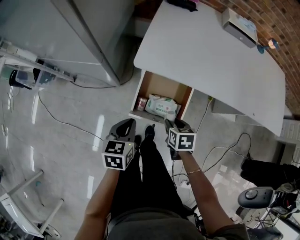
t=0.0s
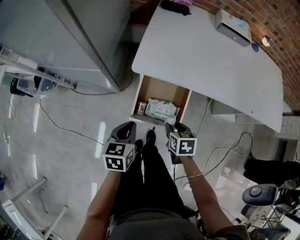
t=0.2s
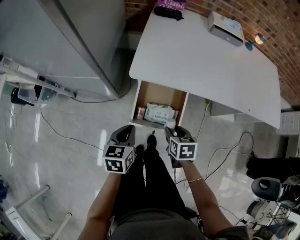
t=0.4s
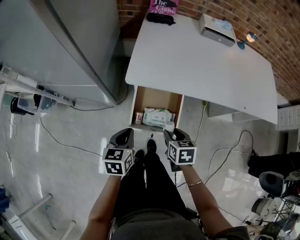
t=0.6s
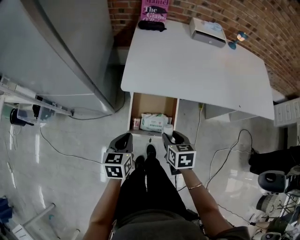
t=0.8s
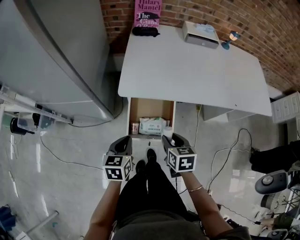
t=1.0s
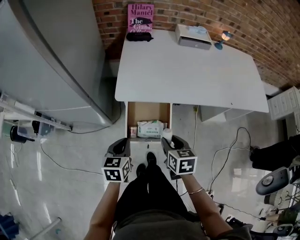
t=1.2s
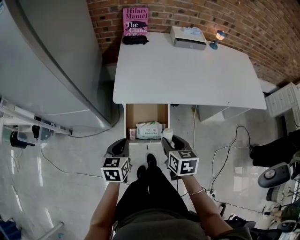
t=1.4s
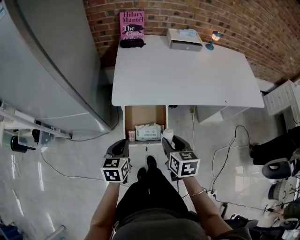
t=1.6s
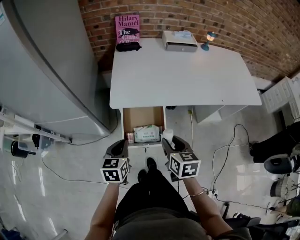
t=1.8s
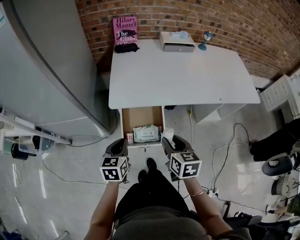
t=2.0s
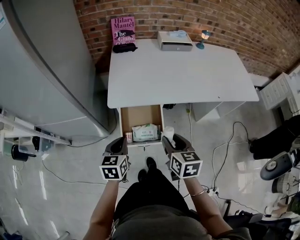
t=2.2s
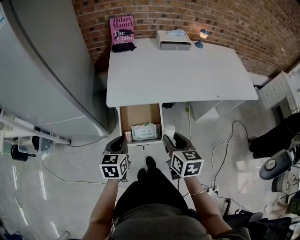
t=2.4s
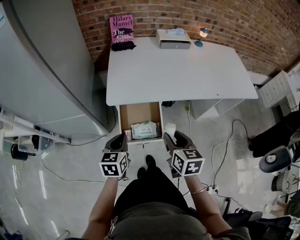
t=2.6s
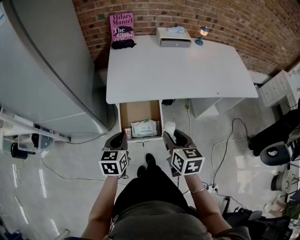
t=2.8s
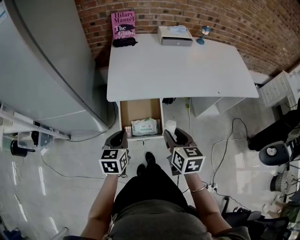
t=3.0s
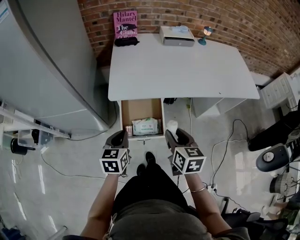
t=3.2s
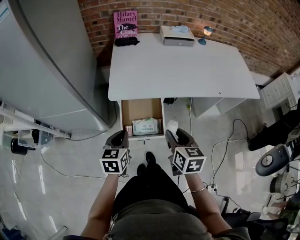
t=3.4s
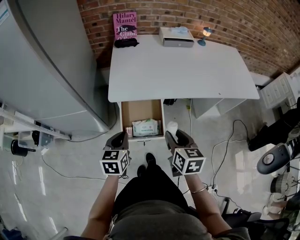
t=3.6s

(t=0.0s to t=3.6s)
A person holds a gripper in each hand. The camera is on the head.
t=0.0s - t=1.8s: The right gripper goes approximately 20 cm upward, and turns by some 30 degrees, while the left gripper is displaced upward by some 5 cm.
t=1.8s - t=3.6s: The grippers move only a little.

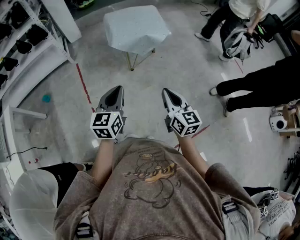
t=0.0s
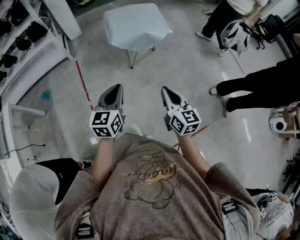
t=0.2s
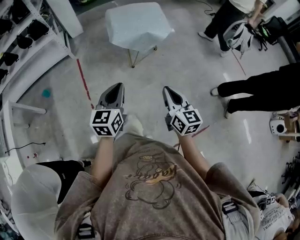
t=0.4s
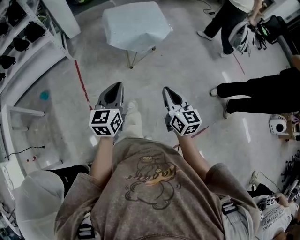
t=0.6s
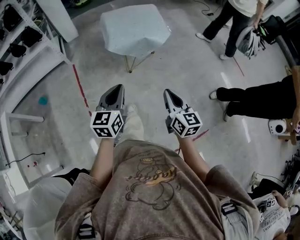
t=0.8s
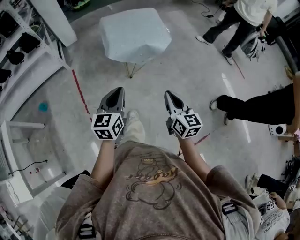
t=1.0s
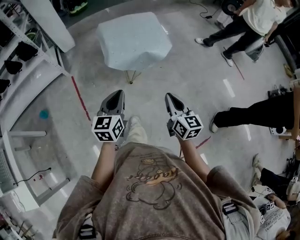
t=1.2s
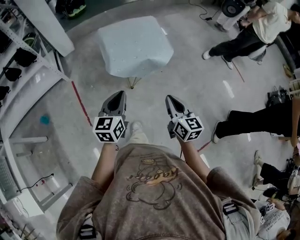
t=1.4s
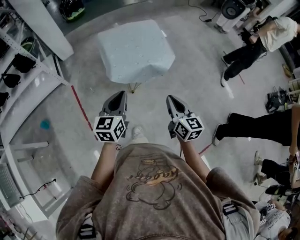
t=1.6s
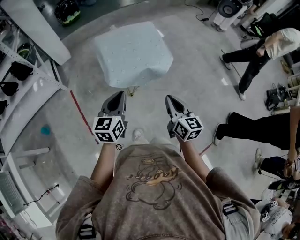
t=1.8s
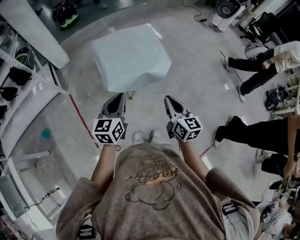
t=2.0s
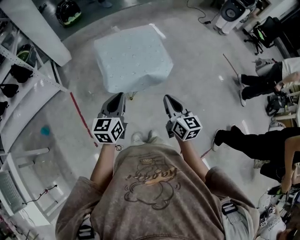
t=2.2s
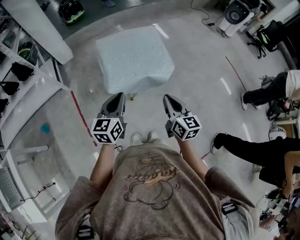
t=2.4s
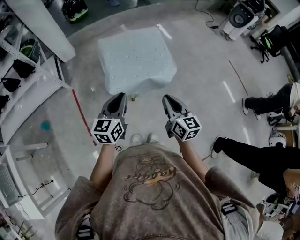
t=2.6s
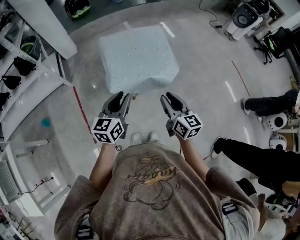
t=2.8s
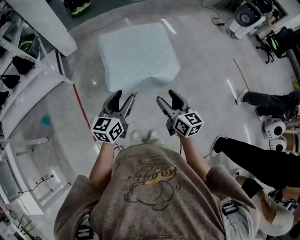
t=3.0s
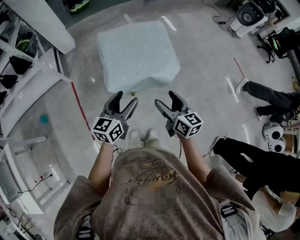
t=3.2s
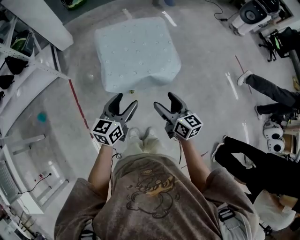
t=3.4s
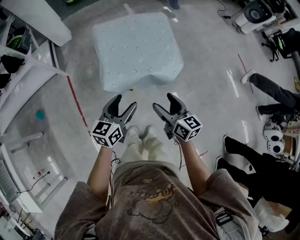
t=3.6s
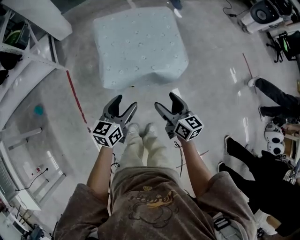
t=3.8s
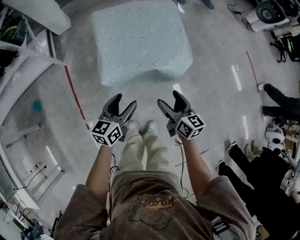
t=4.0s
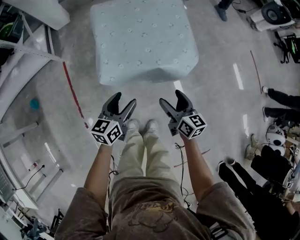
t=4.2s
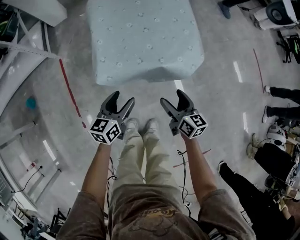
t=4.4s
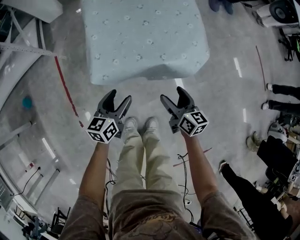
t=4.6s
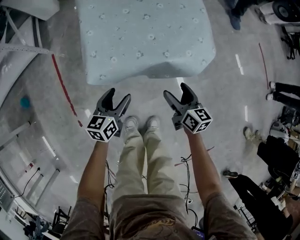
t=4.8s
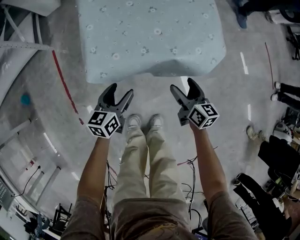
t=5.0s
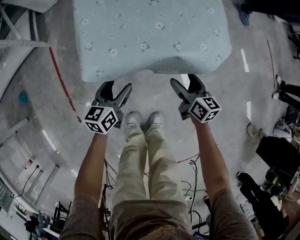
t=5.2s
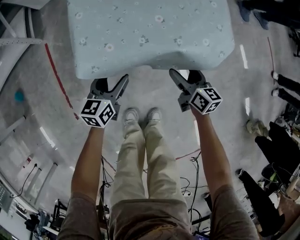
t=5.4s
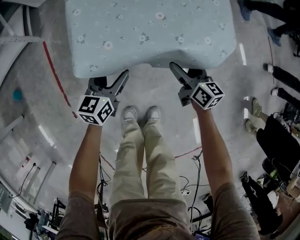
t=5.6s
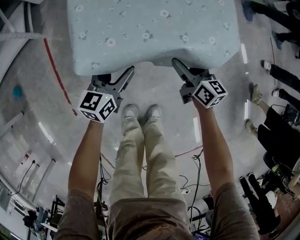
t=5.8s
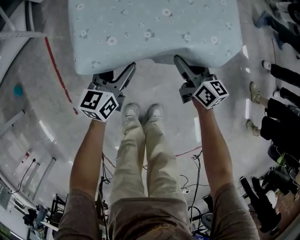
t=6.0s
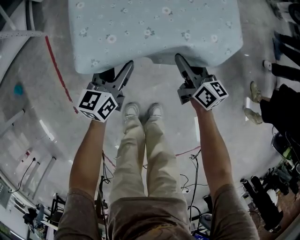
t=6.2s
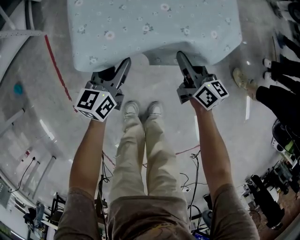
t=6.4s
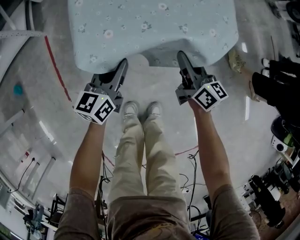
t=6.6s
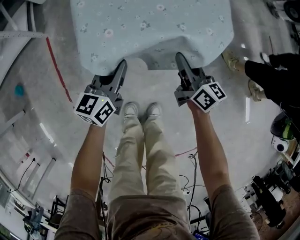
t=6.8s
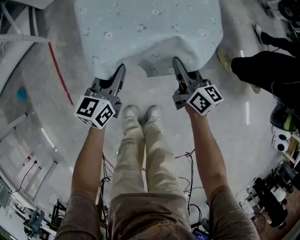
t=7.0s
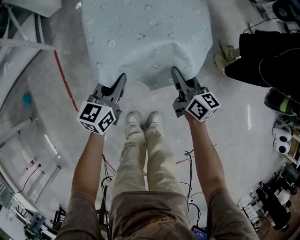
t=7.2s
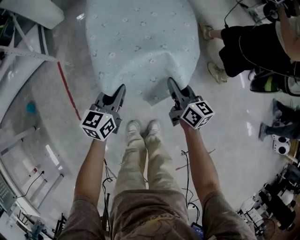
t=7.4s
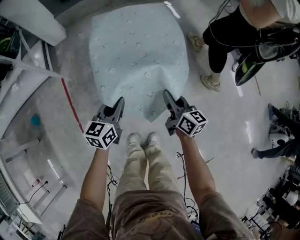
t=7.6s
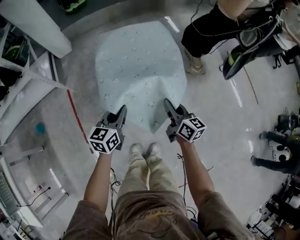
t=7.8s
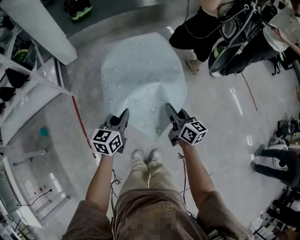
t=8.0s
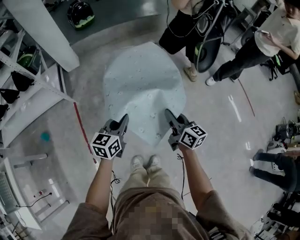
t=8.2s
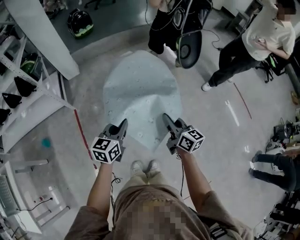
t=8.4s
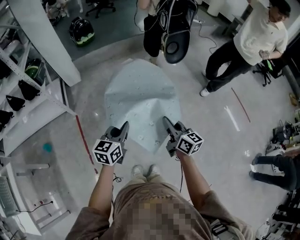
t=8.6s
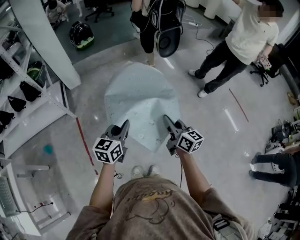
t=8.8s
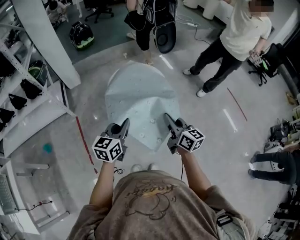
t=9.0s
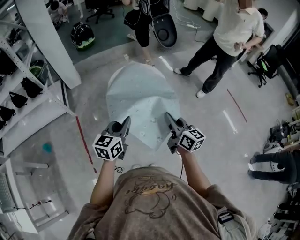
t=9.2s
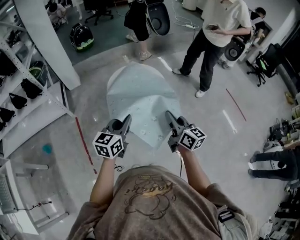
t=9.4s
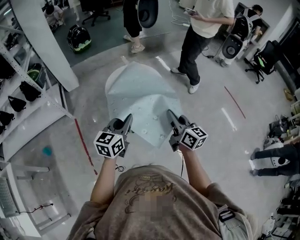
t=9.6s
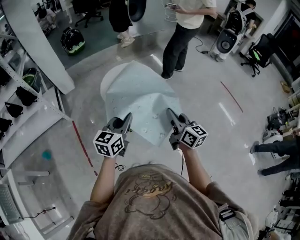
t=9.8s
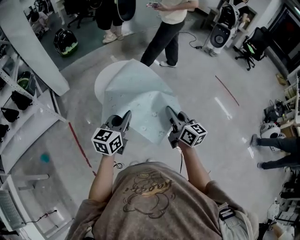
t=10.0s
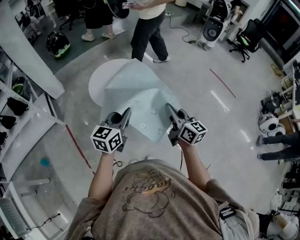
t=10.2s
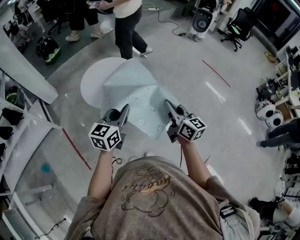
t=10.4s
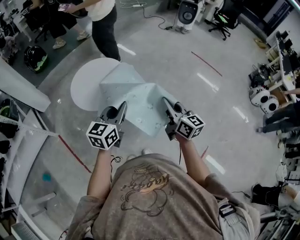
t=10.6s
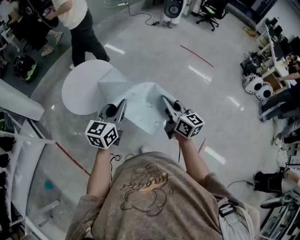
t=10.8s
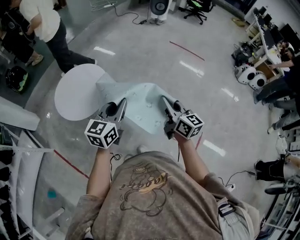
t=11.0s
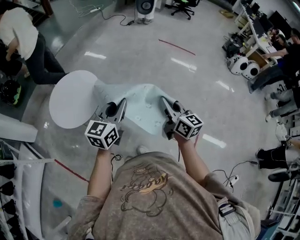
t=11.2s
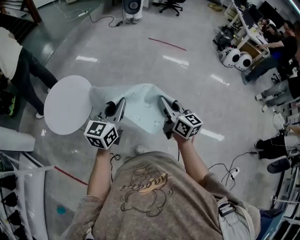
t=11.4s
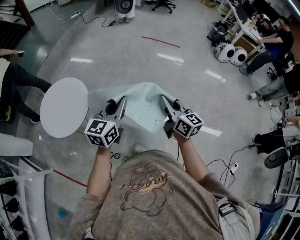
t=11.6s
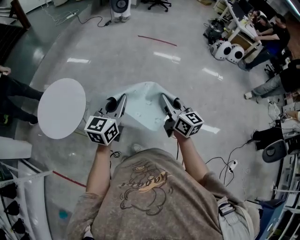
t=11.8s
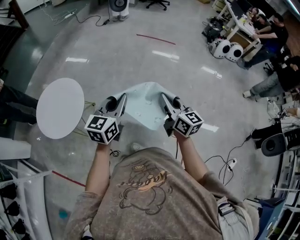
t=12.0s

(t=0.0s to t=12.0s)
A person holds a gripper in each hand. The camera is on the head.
t=0.0s - t=1.6s: The grippers both shift forward by approximately 30 cm.
t=1.6s - t=3.0s: The two grippers go approximately 10 cm forward. The right gripper opens up. Meanwhile the left gripper opens.
t=3.0s - t=4.4s: The two grippers go some 25 cm downward.
t=4.4s - t=6.0s: Both grippers travel together downward and forward, about 15 cm.
t=6.0s - t=7.6s: The two grippers go approximately 15 cm upward. The right gripper closes its fingers, while the left gripper closes up.
t=7.6s - t=9.0s: Both grippers travel together upward, approximately 25 cm.
t=9.0s - t=10.4s: The right gripper moves to the right and backward, approximately 15 cm. The left gripper is displaced to the right by approximately 10 cm.
t=10.4s - t=12.0s: The left gripper ends up some 25 cm from where it was, and rotates approximately 30 degrees; the right gripper shifts by approximately 25 cm, and swivels some 30 degrees.

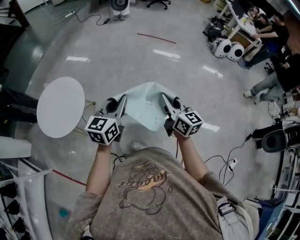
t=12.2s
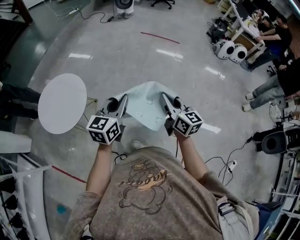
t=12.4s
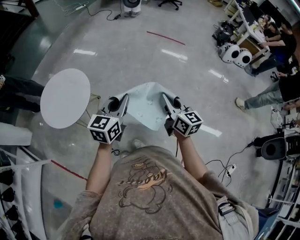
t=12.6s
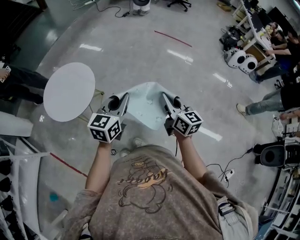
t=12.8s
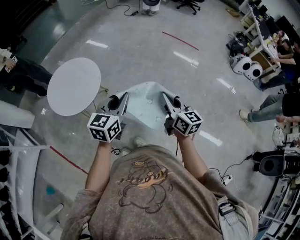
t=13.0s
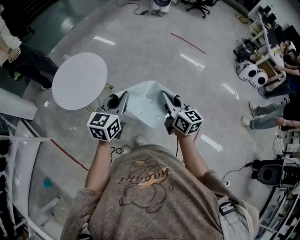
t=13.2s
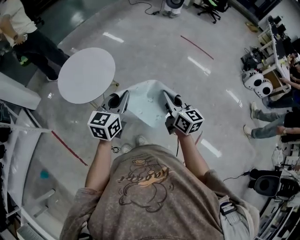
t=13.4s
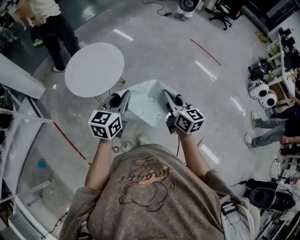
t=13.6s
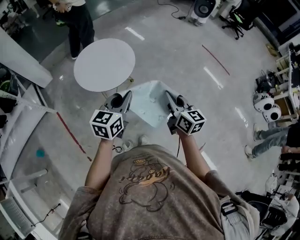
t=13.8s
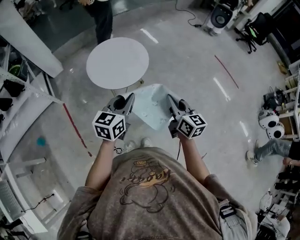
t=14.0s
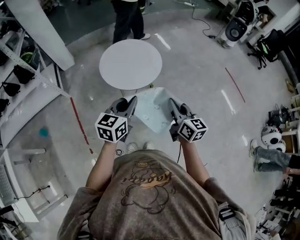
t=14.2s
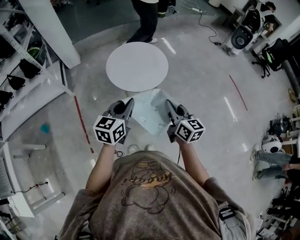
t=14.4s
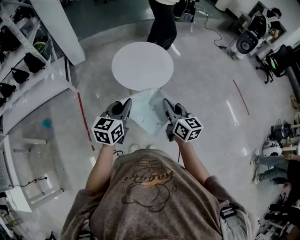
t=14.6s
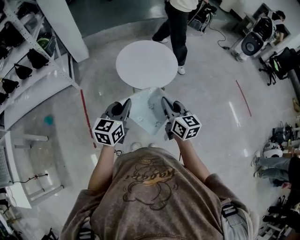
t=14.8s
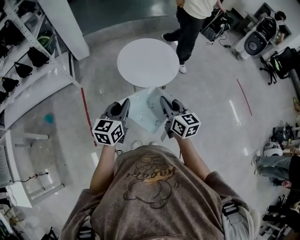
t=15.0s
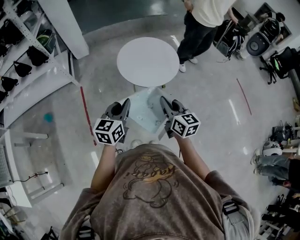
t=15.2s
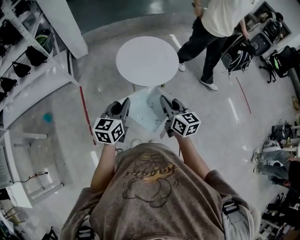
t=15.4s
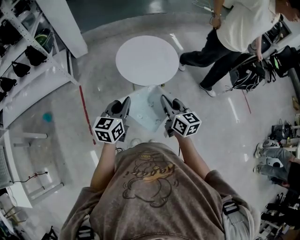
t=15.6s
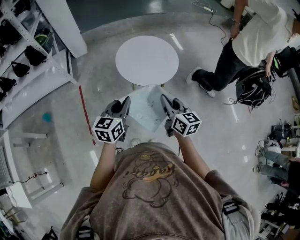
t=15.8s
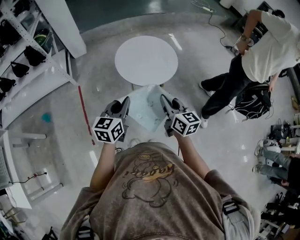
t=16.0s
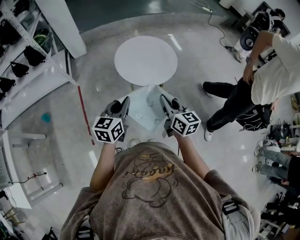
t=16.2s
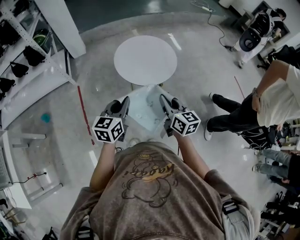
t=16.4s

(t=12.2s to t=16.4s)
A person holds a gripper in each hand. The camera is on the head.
t=12.2s - t=13.6s: The right gripper shifts by some 15 cm, and turns by about 30 degrees. Meanwhile the left gripper changes place by approximately 15 cm, and swivels some 30 degrees.
t=13.6s - t=15.0s: The right gripper shifts by approximately 25 cm, and swivels some 30 degrees. The left gripper shifts by some 25 cm, and swivels roughly 30 degrees.
t=15.0s - t=16.4s: There are only small adjustments of the grippers.

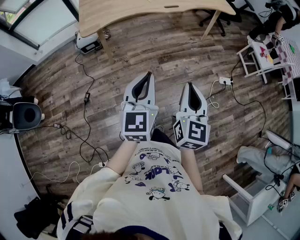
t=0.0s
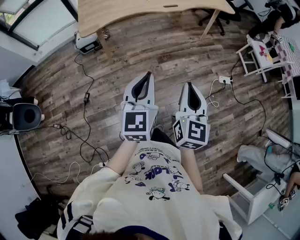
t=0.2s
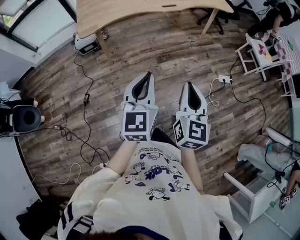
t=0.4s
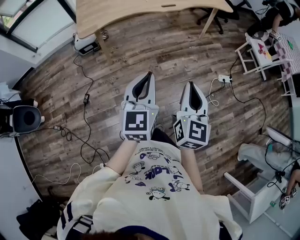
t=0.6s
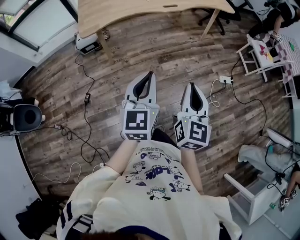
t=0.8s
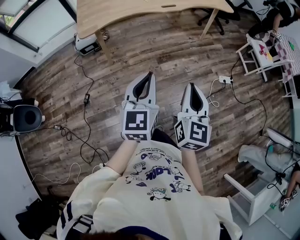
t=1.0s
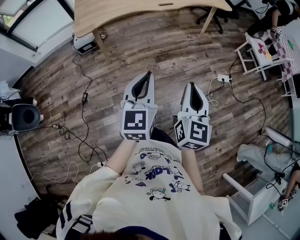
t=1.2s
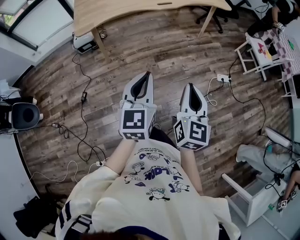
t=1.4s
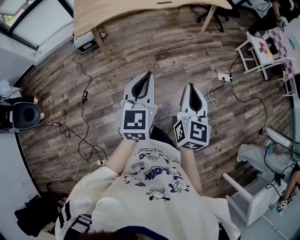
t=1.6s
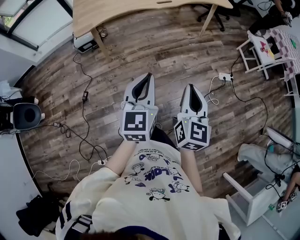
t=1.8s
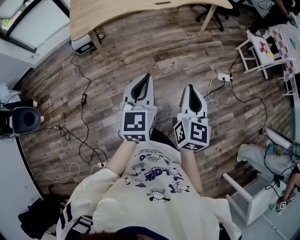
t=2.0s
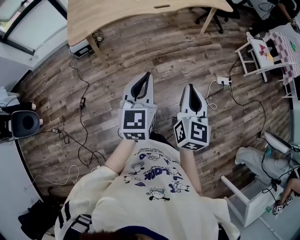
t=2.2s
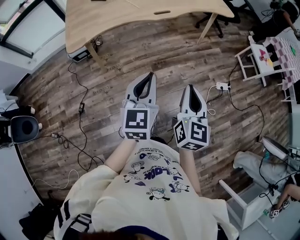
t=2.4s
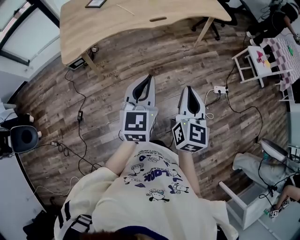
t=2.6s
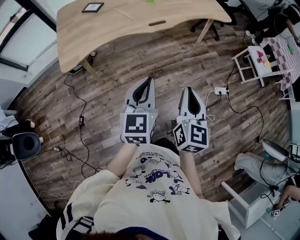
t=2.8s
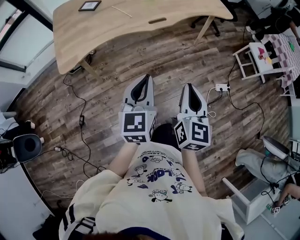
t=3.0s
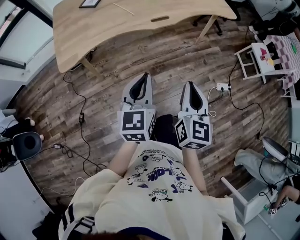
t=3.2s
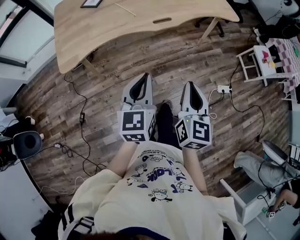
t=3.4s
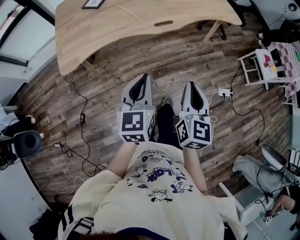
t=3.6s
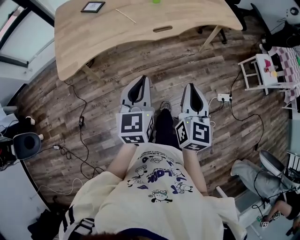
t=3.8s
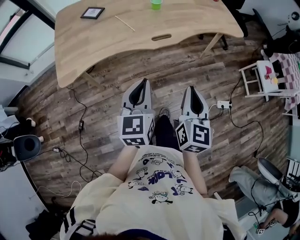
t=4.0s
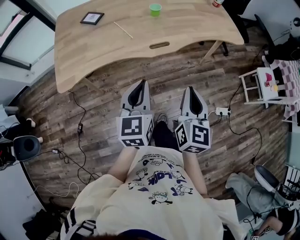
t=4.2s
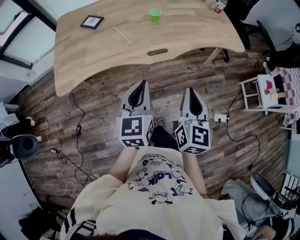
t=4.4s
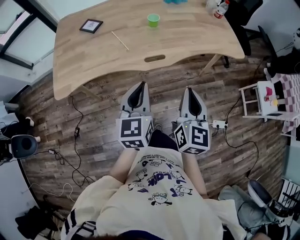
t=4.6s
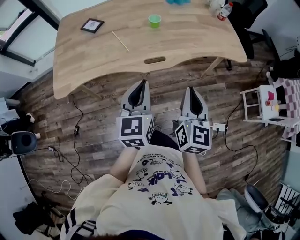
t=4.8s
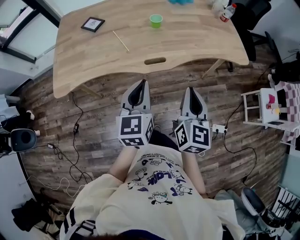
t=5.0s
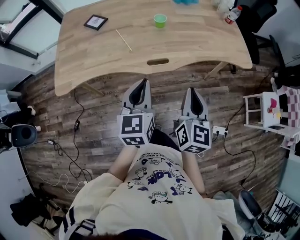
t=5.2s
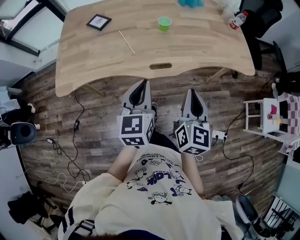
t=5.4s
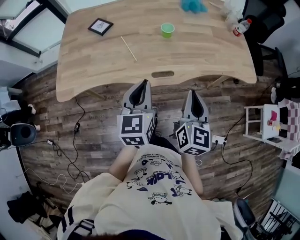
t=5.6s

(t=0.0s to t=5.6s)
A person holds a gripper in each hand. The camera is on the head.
t=0.0s - t=1.4s: The right gripper shifts roughly 5 cm to the right.
t=1.4s - t=2.8s: The grippers both shift forward by approximately 20 cm.
t=2.8s - t=4.2s: The grippers both shift forward by approximately 15 cm.
t=4.2s - t=5.6s: The grippers both shift forward by some 15 cm.
